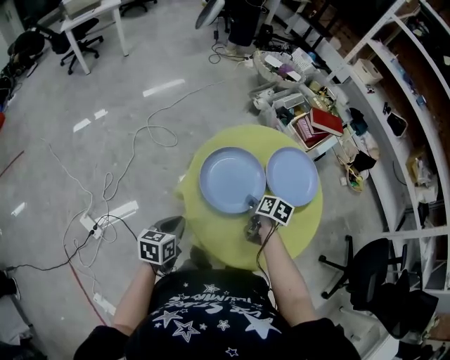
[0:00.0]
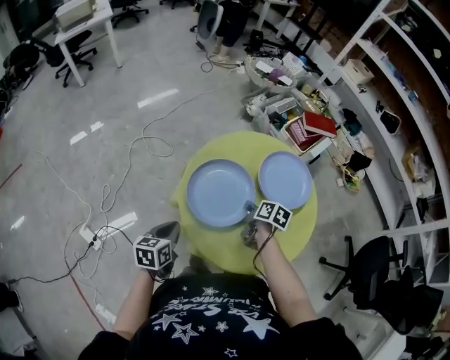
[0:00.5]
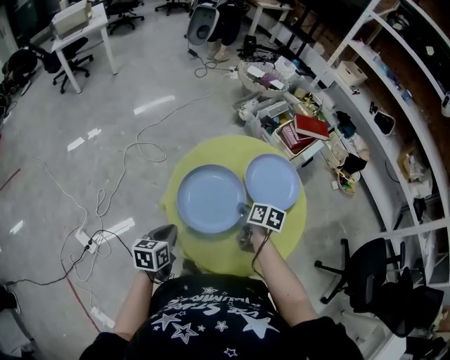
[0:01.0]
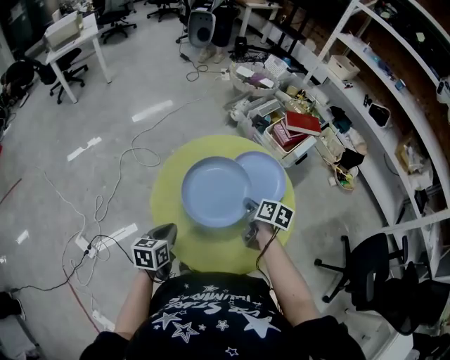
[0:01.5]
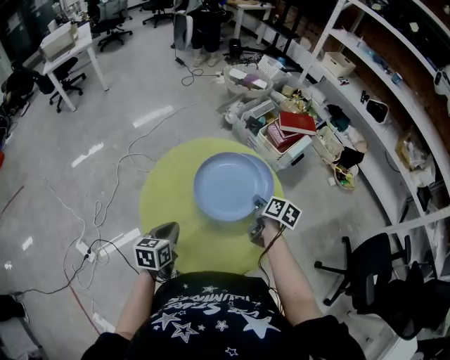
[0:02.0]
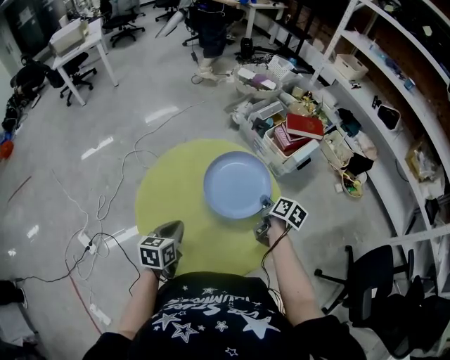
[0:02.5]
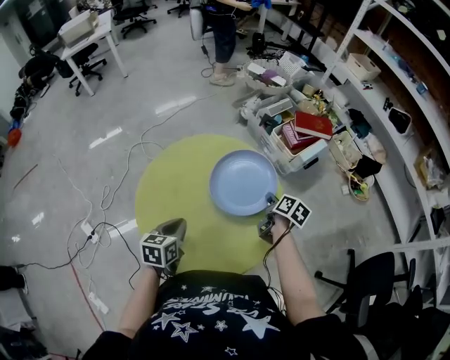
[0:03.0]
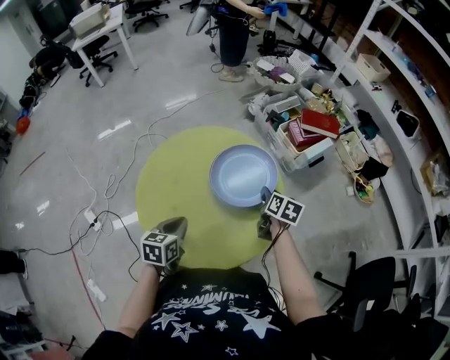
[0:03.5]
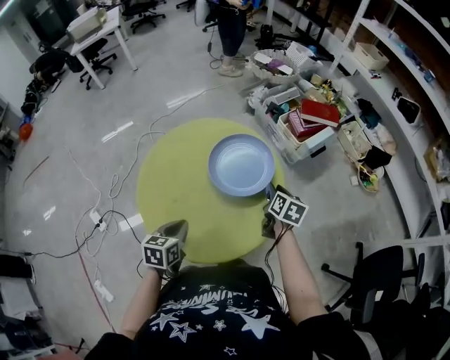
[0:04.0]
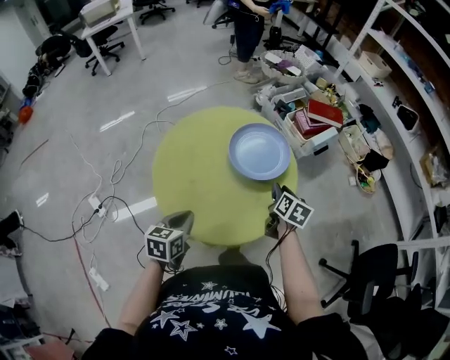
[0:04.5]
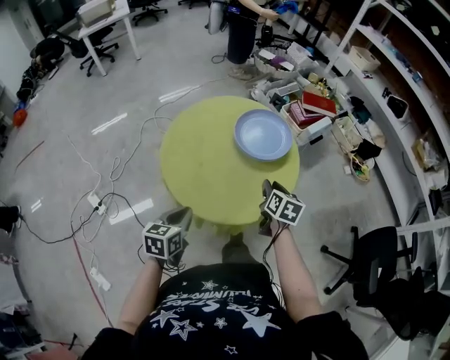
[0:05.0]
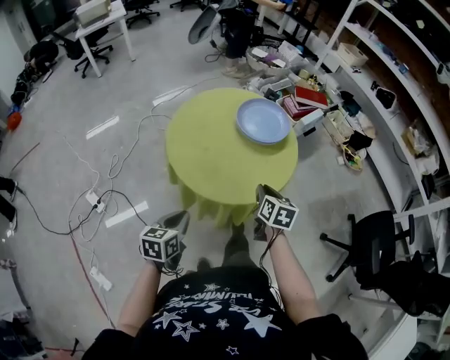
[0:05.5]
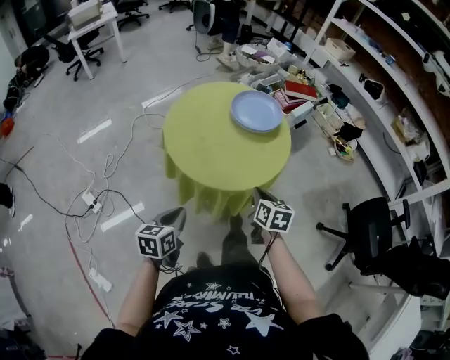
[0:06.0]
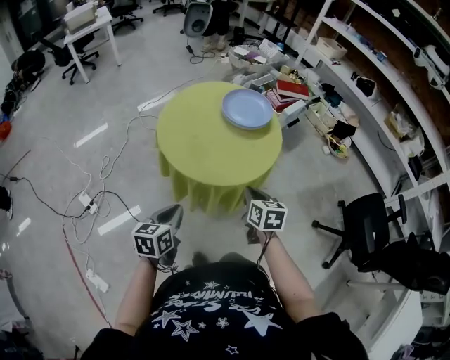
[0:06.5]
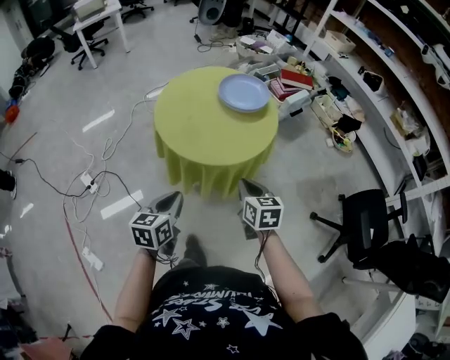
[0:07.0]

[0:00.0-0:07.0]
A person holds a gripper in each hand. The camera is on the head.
0.0 to 2.0 s: The two grippers go approximately 15 cm to the right. The right gripper closes.
2.0 to 3.5 s: Both grippers travel together to the right, approximately 5 cm. The right gripper opens its fingers.
3.5 to 5.0 s: The two grippers go about 15 cm backward.
5.0 to 7.0 s: Both grippers travel together backward, about 20 cm. The right gripper changes its angle by approximately 20 degrees, and closes.

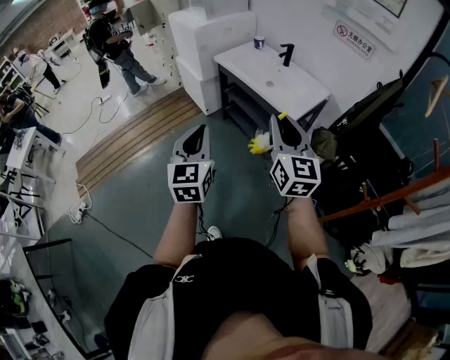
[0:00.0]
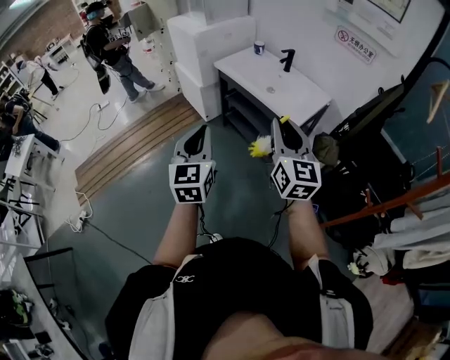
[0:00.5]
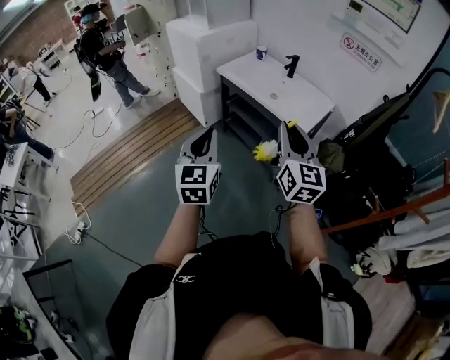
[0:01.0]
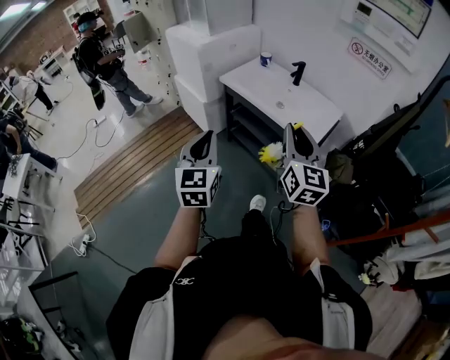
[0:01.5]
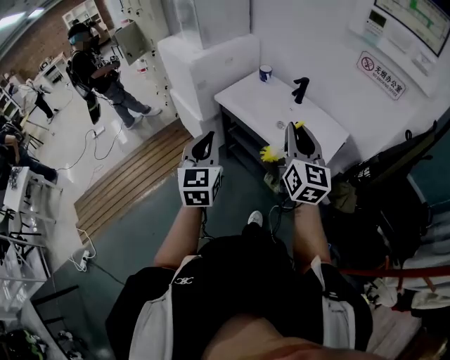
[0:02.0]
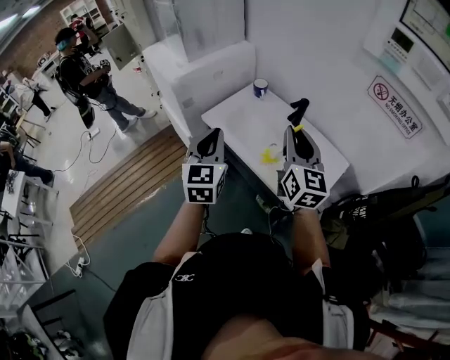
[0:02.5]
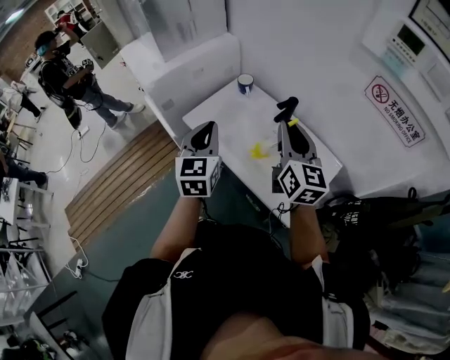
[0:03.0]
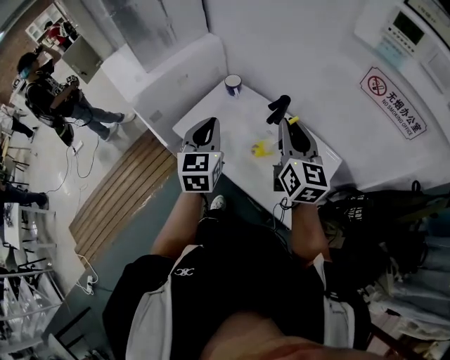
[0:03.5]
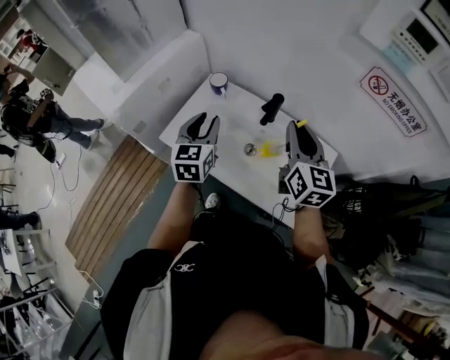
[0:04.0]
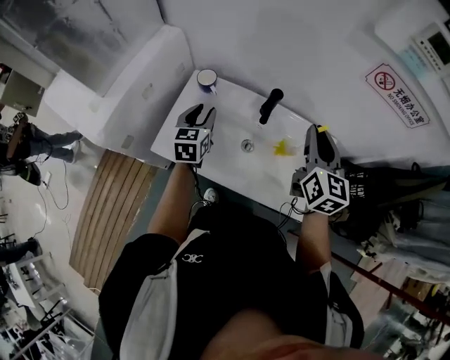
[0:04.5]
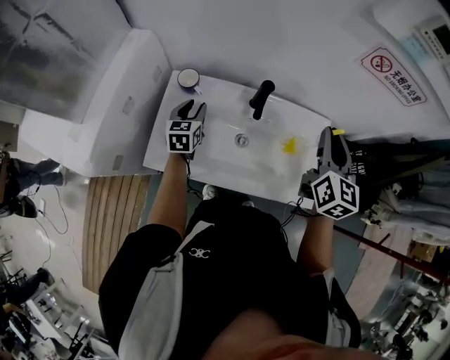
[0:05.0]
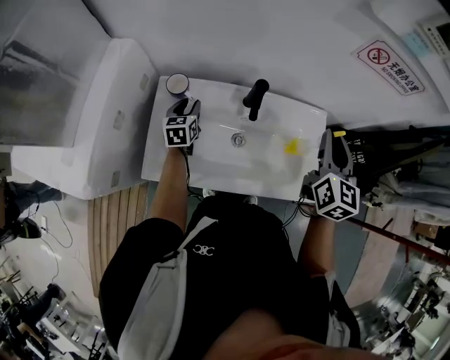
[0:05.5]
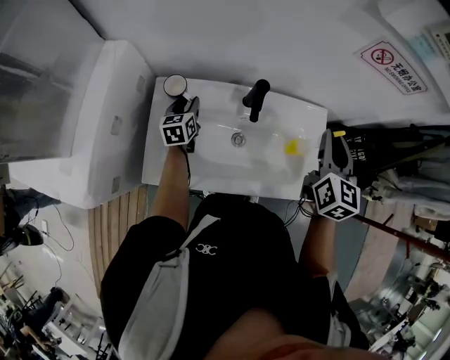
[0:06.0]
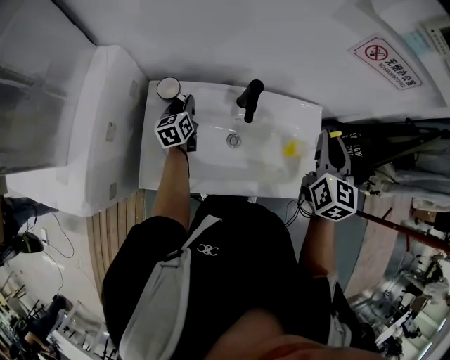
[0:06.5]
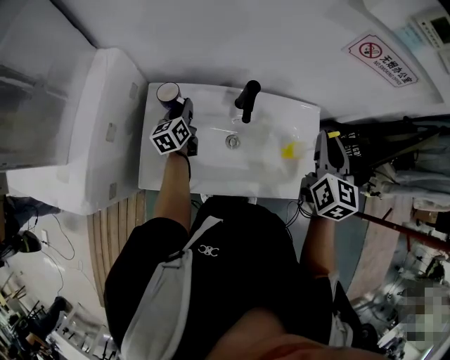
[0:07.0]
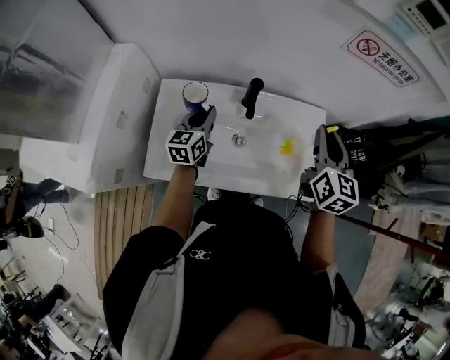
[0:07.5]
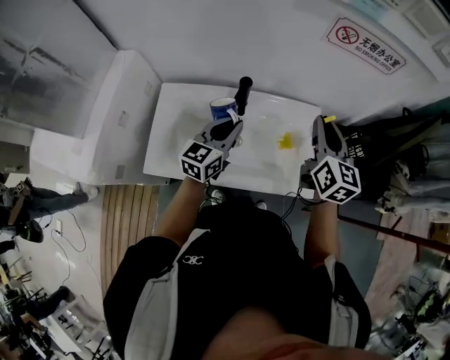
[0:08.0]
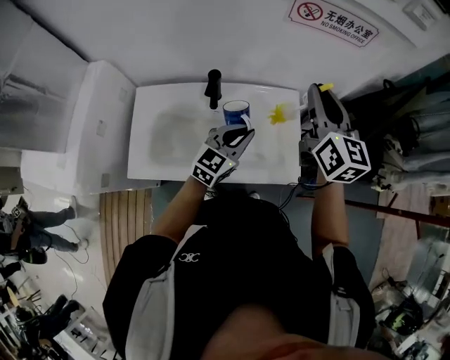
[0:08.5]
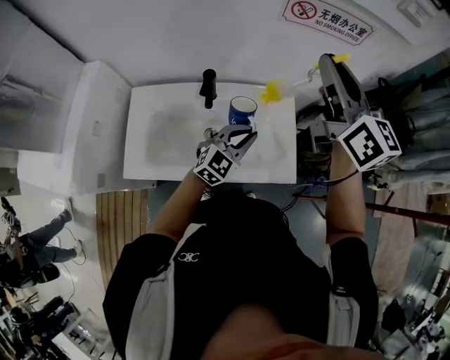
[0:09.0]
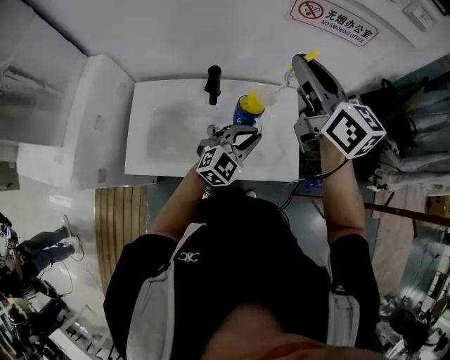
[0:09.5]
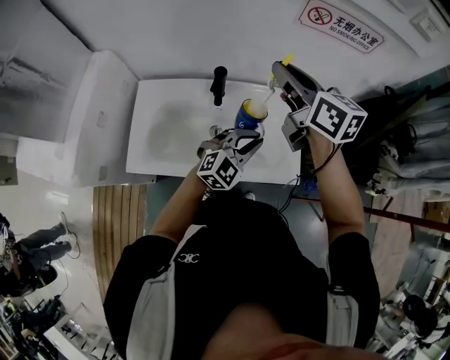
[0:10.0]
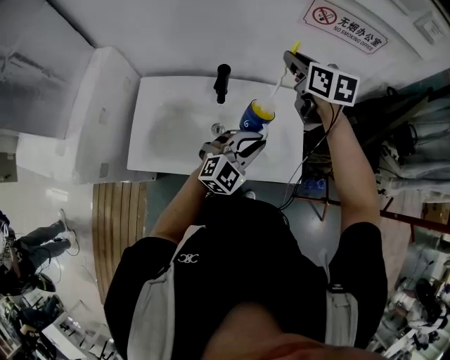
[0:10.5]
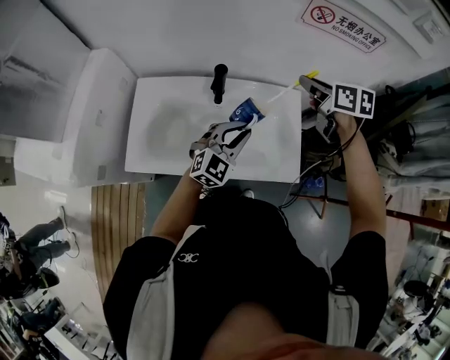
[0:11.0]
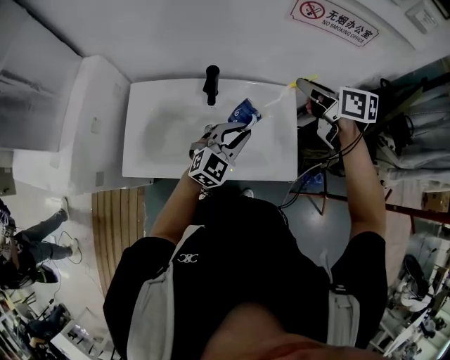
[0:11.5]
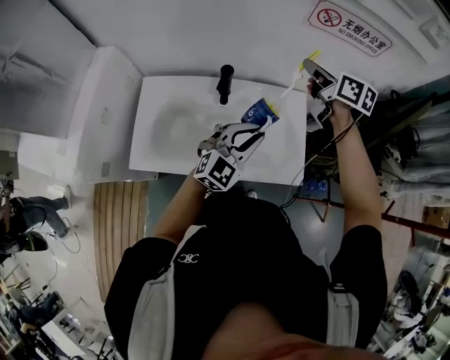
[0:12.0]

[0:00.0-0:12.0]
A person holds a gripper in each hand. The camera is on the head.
0.0 to 2.0 s: Both grippers travel together forward, approximately 30 cm.
2.0 to 4.0 s: Both grippers travel together forward, about 40 cm. The left gripper changes its angle by roughly 20 degrees, and opens.
4.0 to 6.0 s: The left gripper moves downward, some 20 cm, and changes its angle by about 30 degrees; the right gripper changes place by roughly 5 cm, and swivels some 40 degrees.
6.0 to 8.0 s: The left gripper is displaced to the right, upward and backward by some 30 cm, swivels roughly 30 degrees, and closes up; the right gripper moves to the right, approximately 5 cm.
8.0 to 10.0 s: The left gripper is displaced to the right by some 15 cm, and rotates around the line of its fingers by about 40 degrees, clockwise from behind, while the right gripper heads to the left and upward, covering some 10 cm, and swivels about 30 degrees.
10.0 to 12.0 s: The right gripper heads forward, to the right and downward, covering some 15 cm, while the left gripper moves some 5 cm.

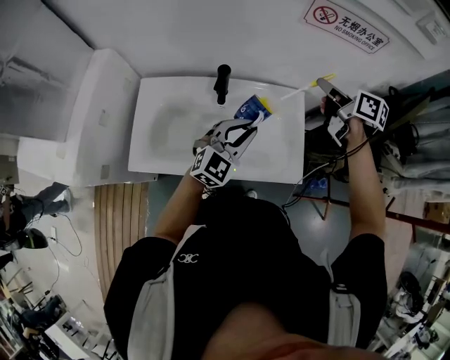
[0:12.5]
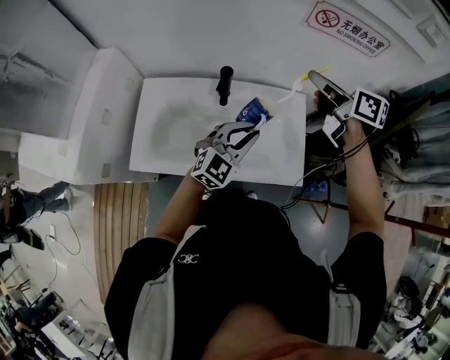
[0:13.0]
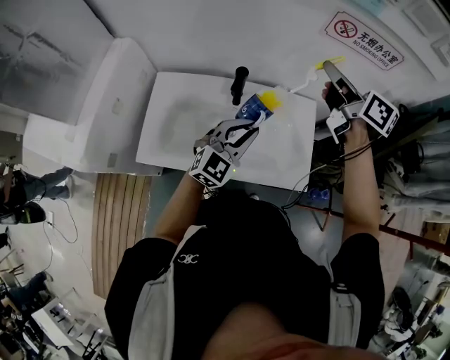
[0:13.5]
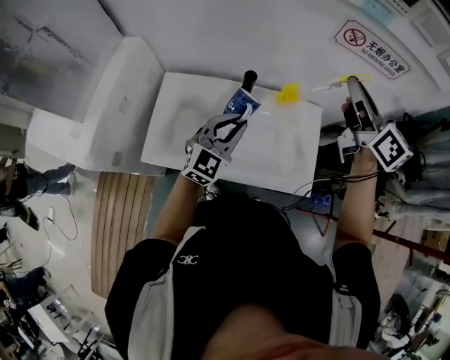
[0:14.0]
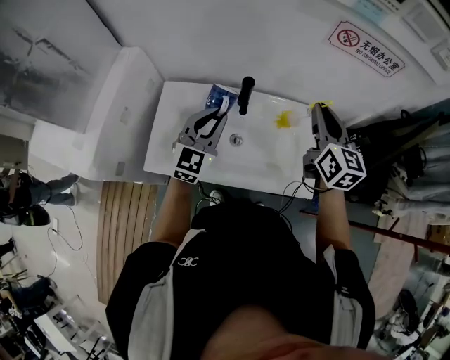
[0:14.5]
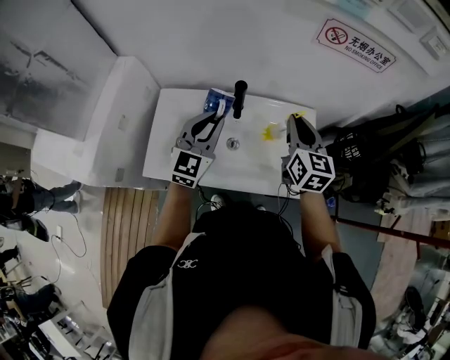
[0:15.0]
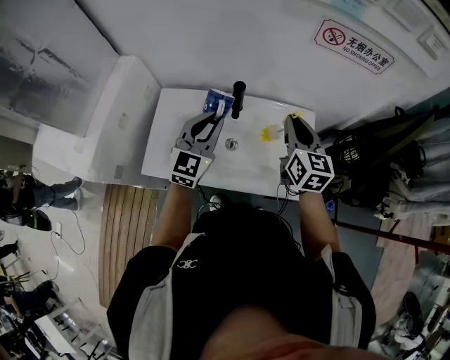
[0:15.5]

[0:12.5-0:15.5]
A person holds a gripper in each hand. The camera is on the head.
12.5 to 14.0 s: The left gripper heads to the left, covering approximately 10 cm. Meanwhile the right gripper shifts roughly 15 cm upward and to the left, and turns by approximately 30 degrees.
14.0 to 15.5 s: The right gripper is displaced downward by approximately 15 cm, and turns by approximately 20 degrees.

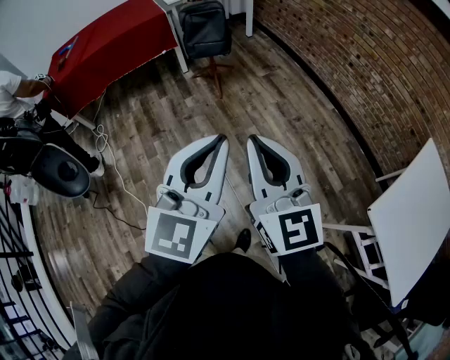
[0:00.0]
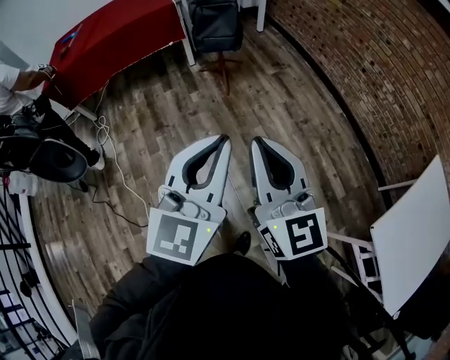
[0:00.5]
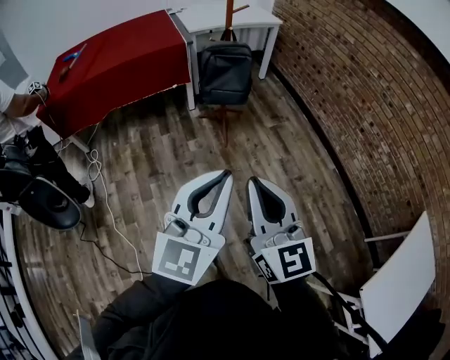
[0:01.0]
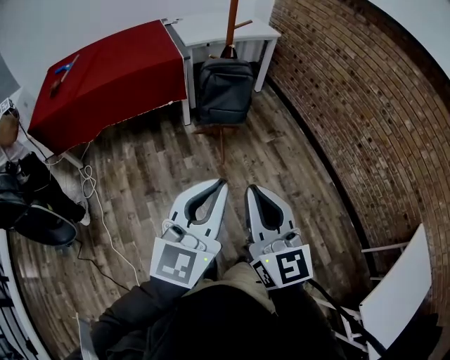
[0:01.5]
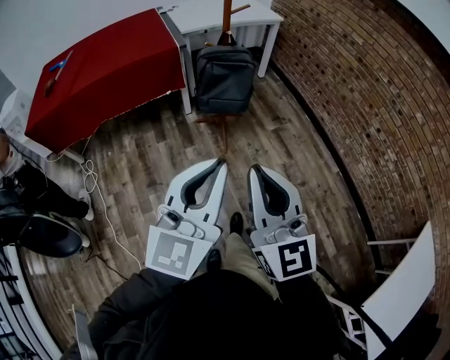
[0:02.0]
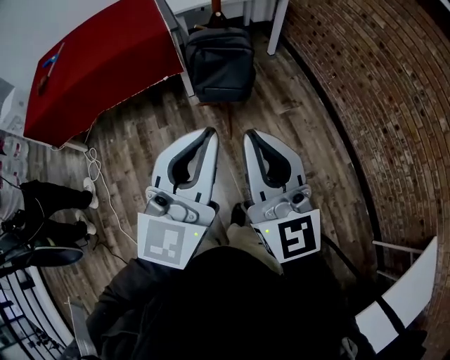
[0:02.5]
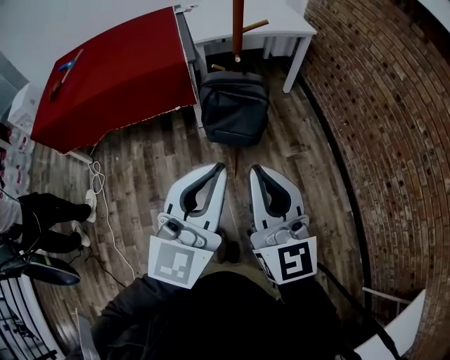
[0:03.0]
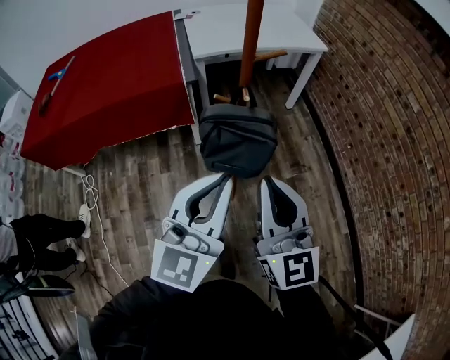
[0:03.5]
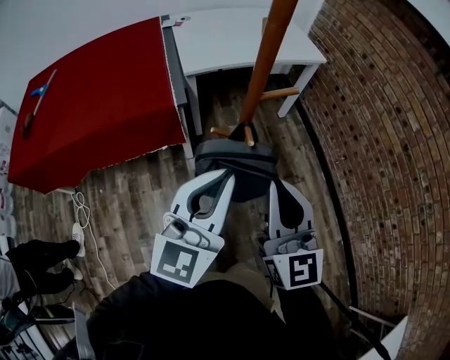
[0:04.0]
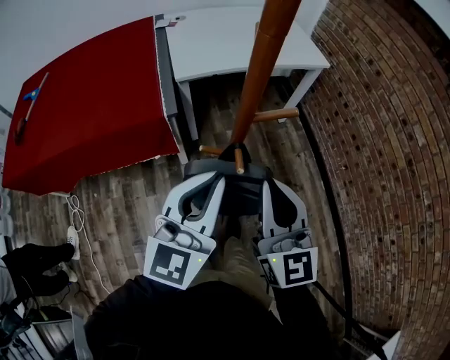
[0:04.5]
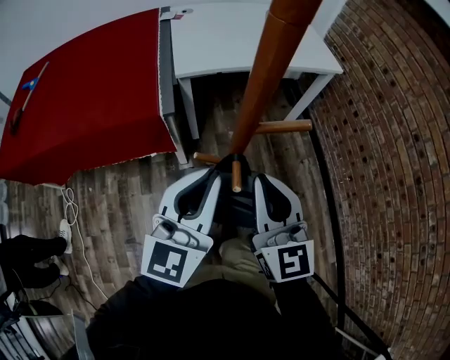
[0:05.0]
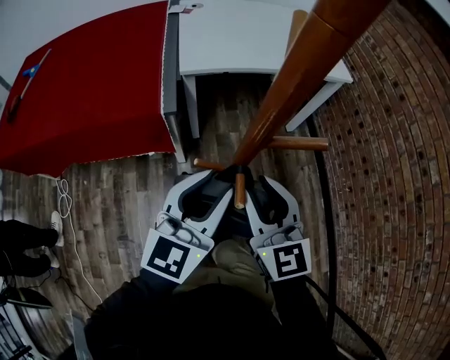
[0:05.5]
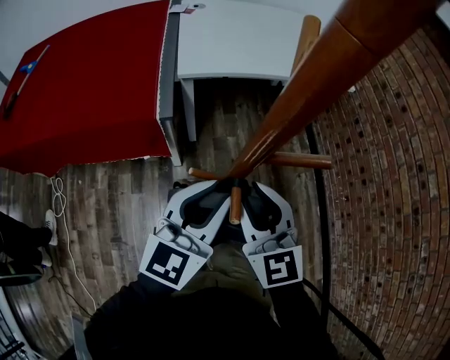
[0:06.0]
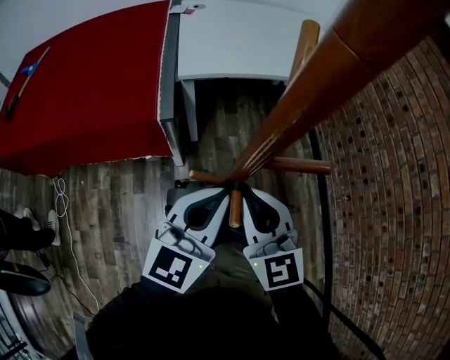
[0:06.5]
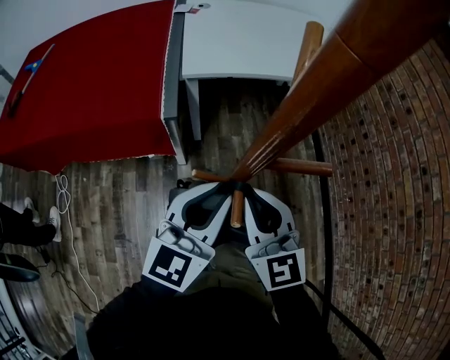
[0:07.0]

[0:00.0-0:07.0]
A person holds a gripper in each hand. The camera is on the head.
0.0 to 2.0 s: Both grippers move forward, roughly 35 cm.
2.0 to 3.5 s: Both grippers are carried forward, approximately 40 cm.
3.5 to 5.0 s: Both grippers travel together forward, some 25 cm.
5.0 to 7.0 s: The grippers both shift downward by roughly 5 cm. The right gripper opens and closes again.
